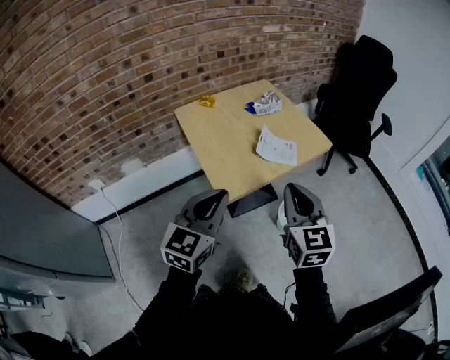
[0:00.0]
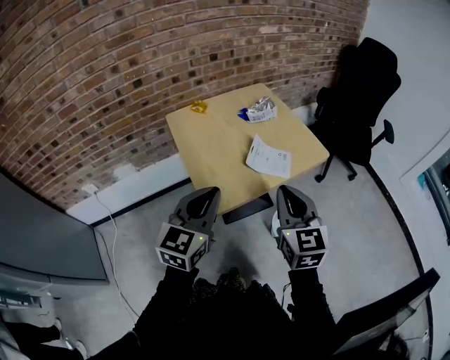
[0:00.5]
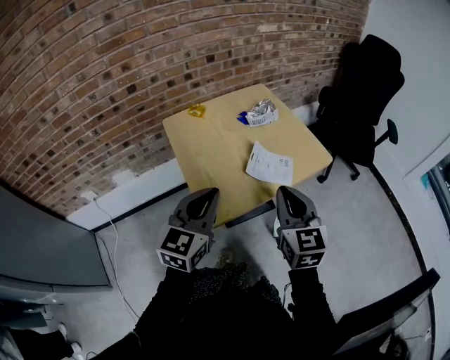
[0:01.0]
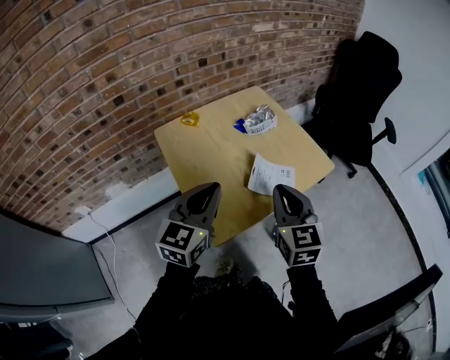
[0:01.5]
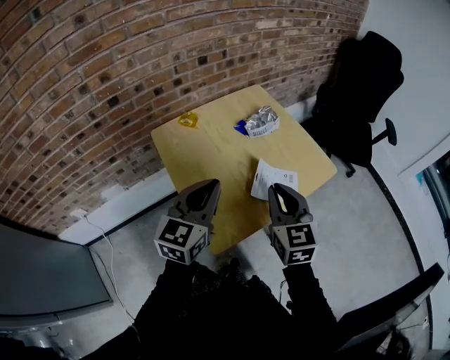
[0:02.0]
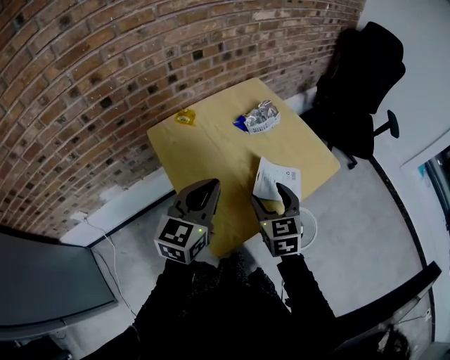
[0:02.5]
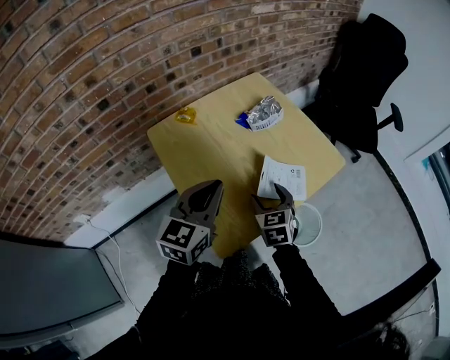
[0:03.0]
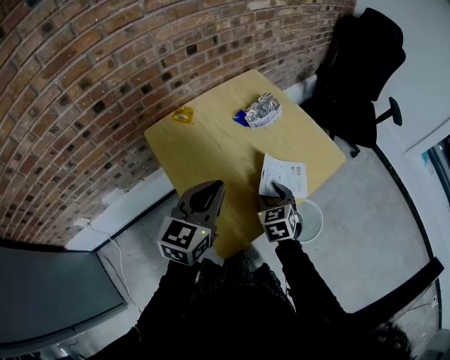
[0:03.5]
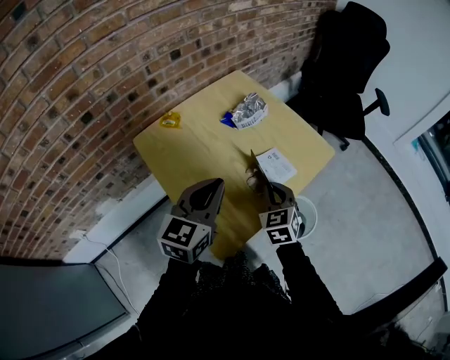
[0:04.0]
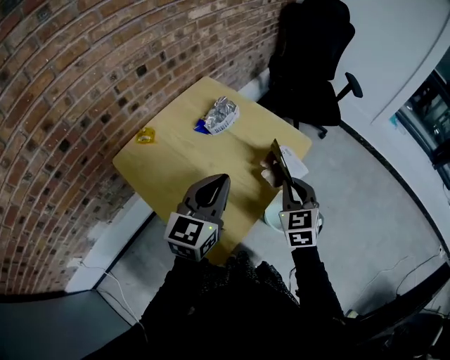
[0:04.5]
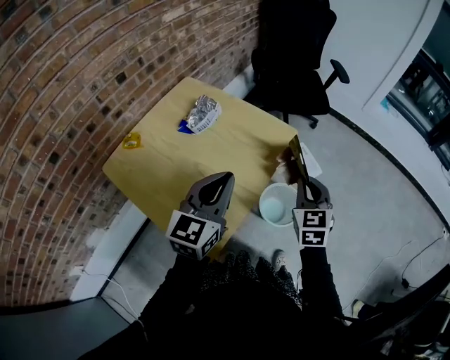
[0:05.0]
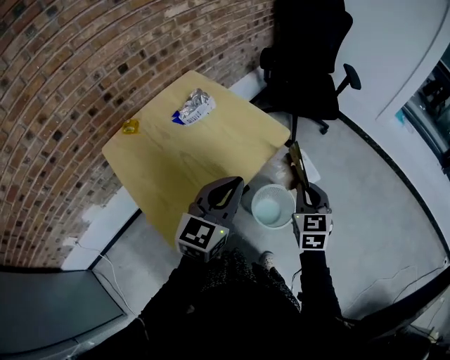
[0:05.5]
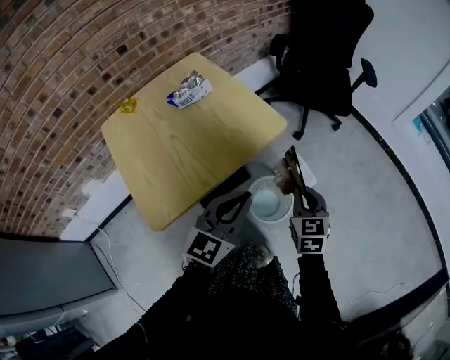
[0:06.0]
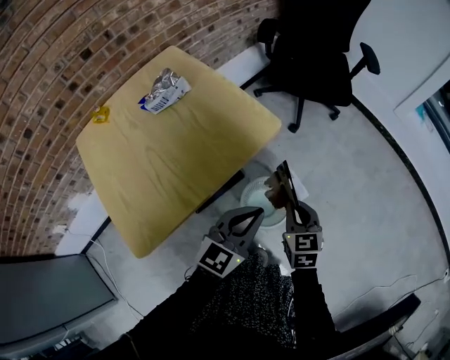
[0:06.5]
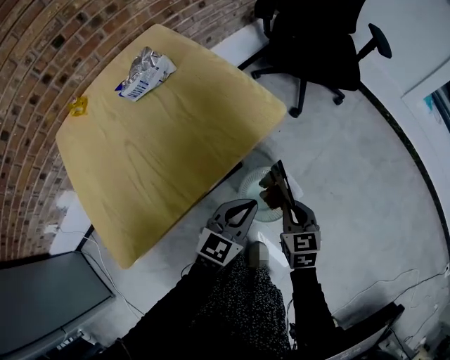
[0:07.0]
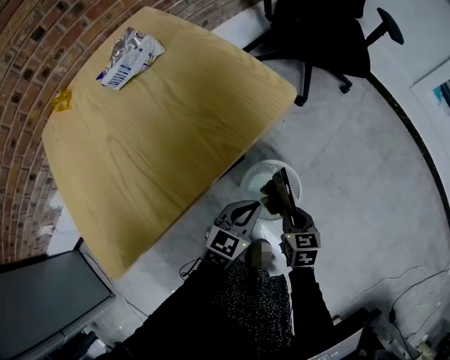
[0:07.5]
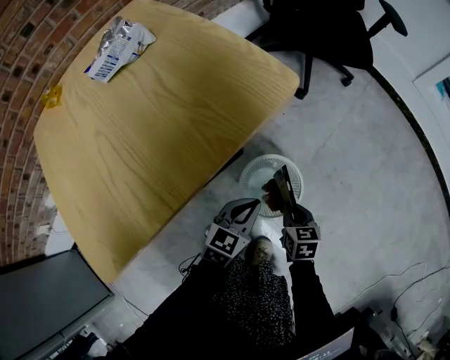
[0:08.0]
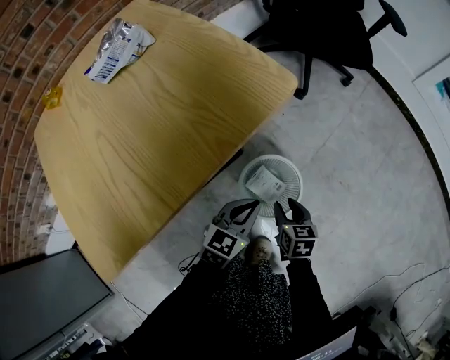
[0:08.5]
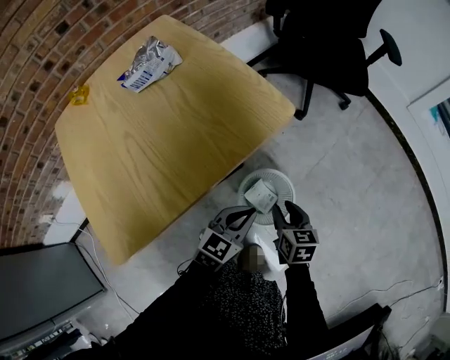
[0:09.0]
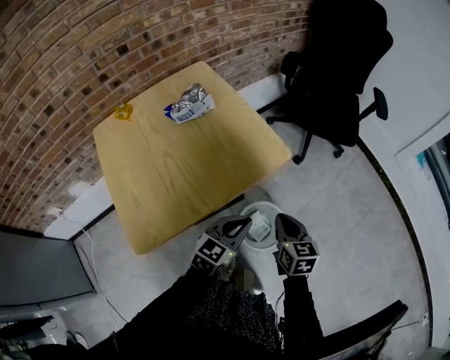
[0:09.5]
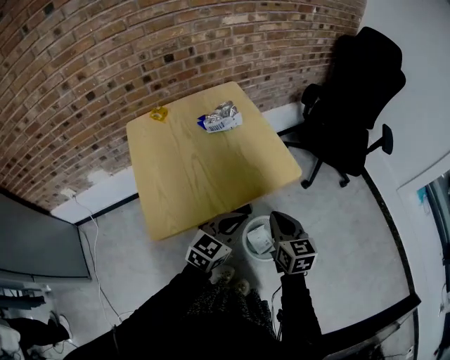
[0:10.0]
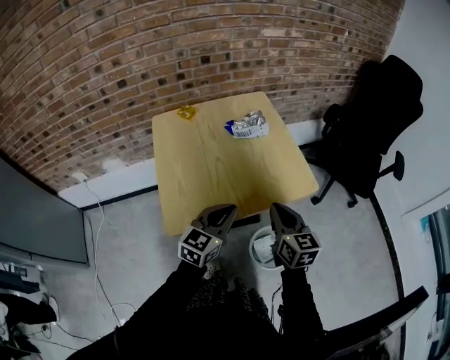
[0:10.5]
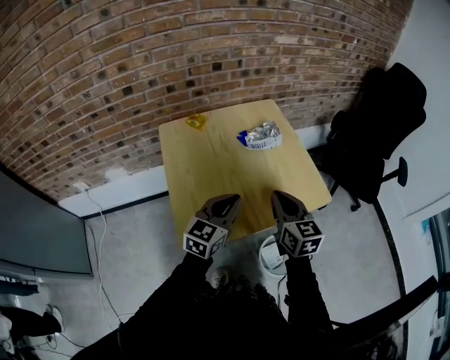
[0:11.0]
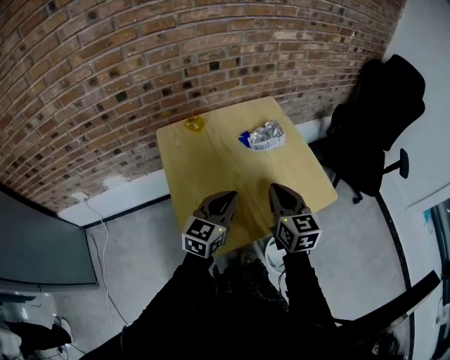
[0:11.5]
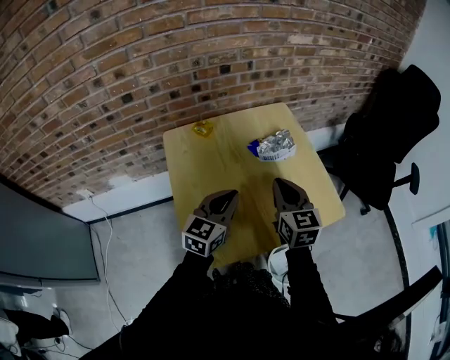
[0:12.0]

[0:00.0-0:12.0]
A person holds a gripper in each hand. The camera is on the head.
0:00.0 to 0:02.0: The grippers both shift forward by about 20 cm.
0:02.0 to 0:04.0: The left gripper moves approximately 5 cm; the right gripper is displaced downward by some 15 cm, rotates about 20 degrees, and opens, then closes once more.
0:04.0 to 0:06.0: The two grippers go roughly 30 cm to the right.
0:06.0 to 0:08.0: The two grippers go some 35 cm downward. The right gripper swivels some 30 degrees. Meanwhile the left gripper turns by about 20 degrees.
0:08.0 to 0:10.0: Both grippers move upward, approximately 35 cm. The right gripper turns by about 30 degrees, and opens and closes again. The left gripper turns by approximately 20 degrees.
0:10.0 to 0:12.0: The right gripper travels to the left, forward and upward by about 30 cm; the left gripper goes roughly 25 cm to the left and forward.

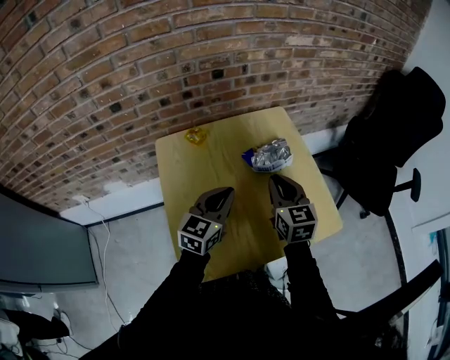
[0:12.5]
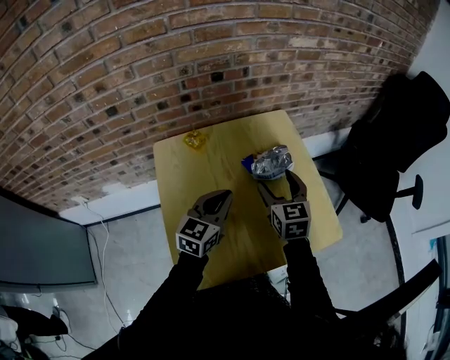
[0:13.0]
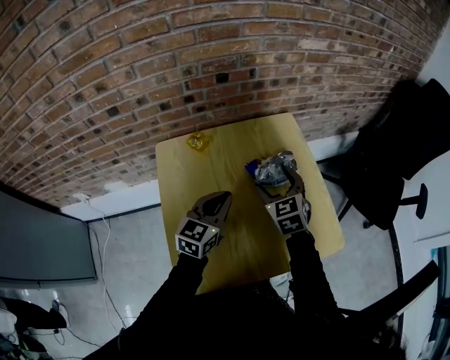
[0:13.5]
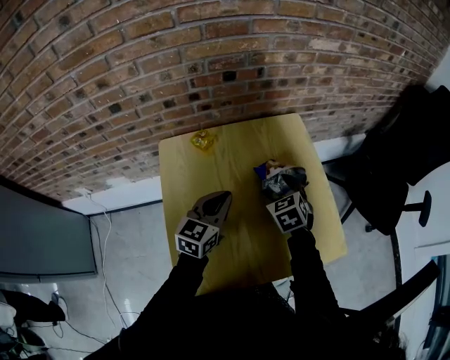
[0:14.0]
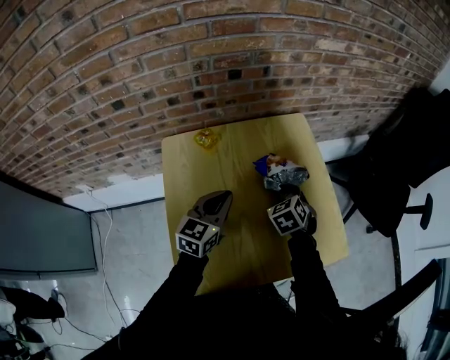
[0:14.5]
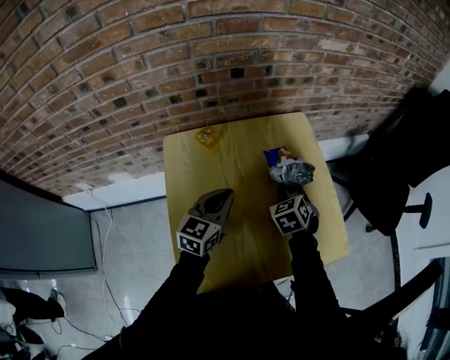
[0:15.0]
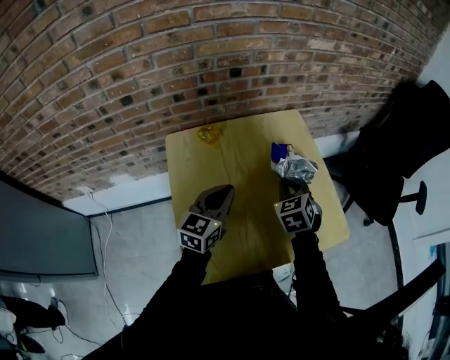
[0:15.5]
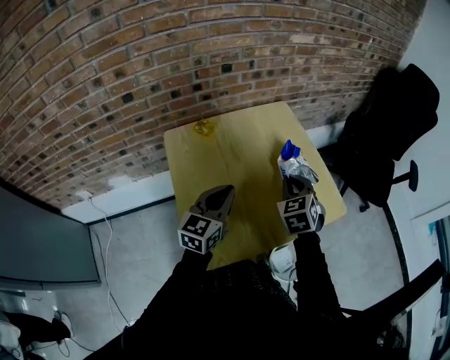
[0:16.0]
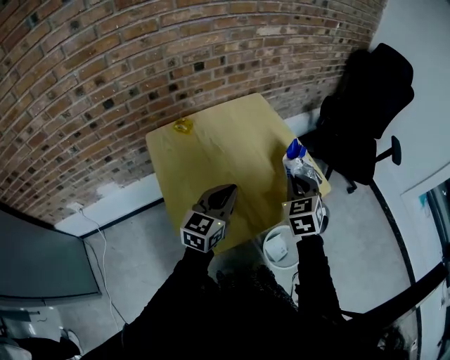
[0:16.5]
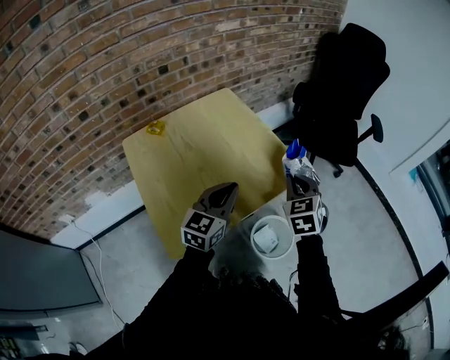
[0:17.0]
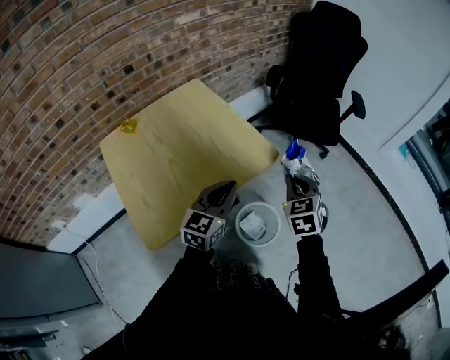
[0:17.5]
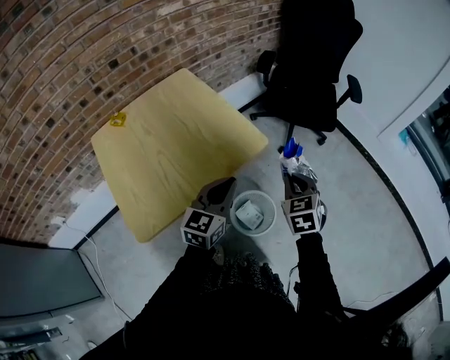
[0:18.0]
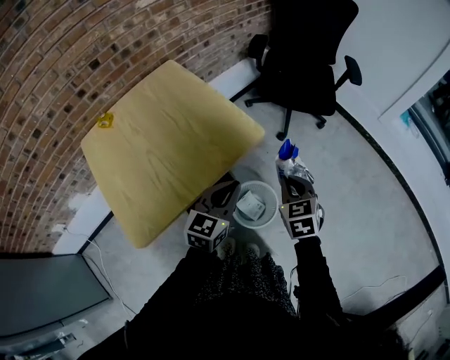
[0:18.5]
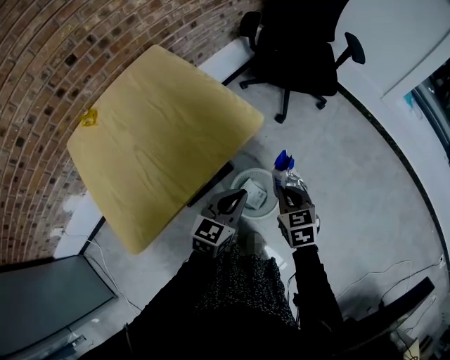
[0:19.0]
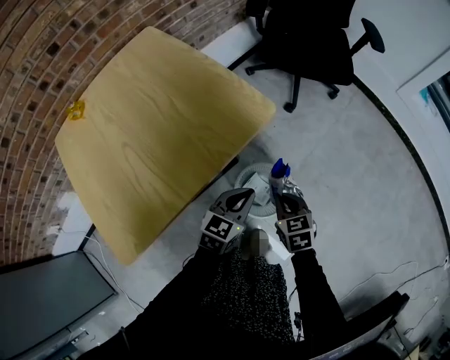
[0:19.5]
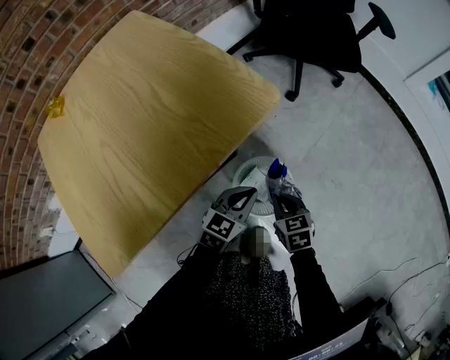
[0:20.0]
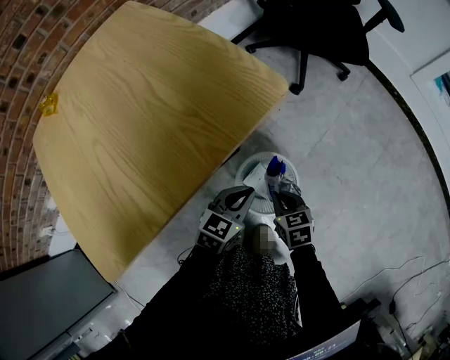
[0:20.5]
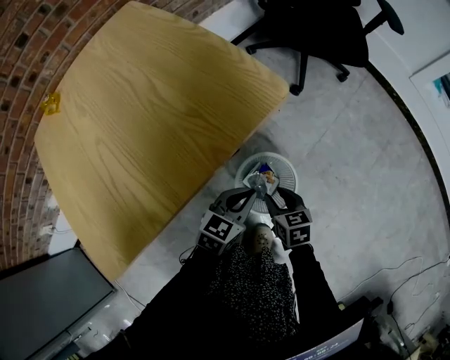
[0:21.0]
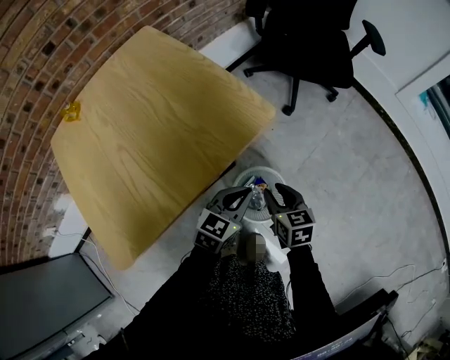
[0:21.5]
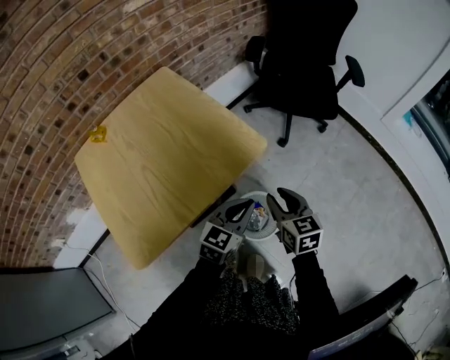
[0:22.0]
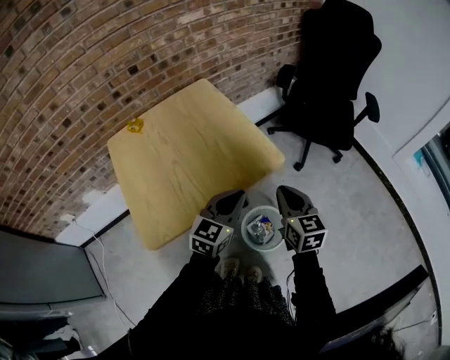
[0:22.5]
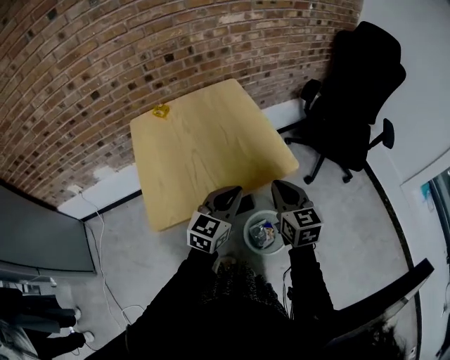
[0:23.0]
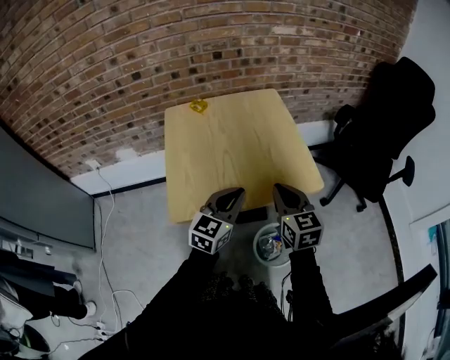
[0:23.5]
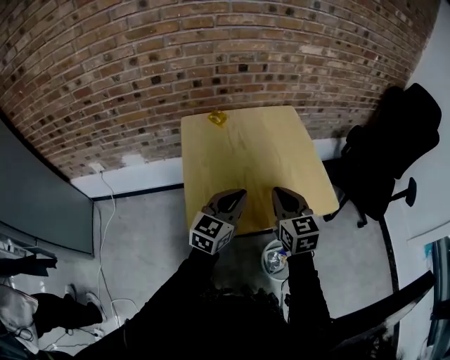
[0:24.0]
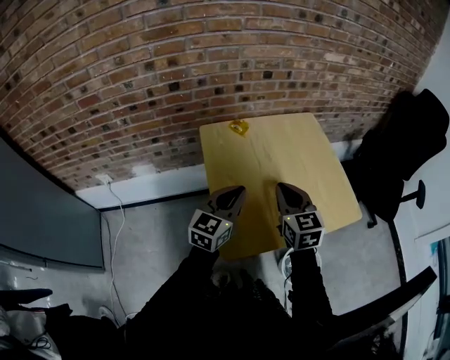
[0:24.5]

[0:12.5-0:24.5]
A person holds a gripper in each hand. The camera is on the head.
0:12.5 to 0:14.5: The left gripper moves forward, some 5 cm, while the right gripper heads downward and forward, covering about 15 cm, angles its fingers downward, by about 40 degrees, and opens, then closes once more.
0:14.5 to 0:16.5: The left gripper shifts about 15 cm backward, to the right and upward. Meanwhile the right gripper moves backward, upward and to the right, approximately 25 cm, and turns by about 30 degrees.
0:16.5 to 0:18.5: The grippers both shift to the right by approximately 25 cm. The right gripper rotates approximately 20 degrees.
0:18.5 to 0:20.5: Both grippers move downward, about 30 cm. The right gripper turns by roughly 30 degrees; the left gripper swivels roughly 20 degrees.
0:20.5 to 0:22.5: Both grippers move upward, approximately 35 cm. The right gripper points its fingers about 30 degrees further upward. The left gripper turns by about 30 degrees.
0:22.5 to 0:24.5: The two grippers go roughly 35 cm to the left. The right gripper swivels about 20 degrees. The left gripper rotates approximately 20 degrees.

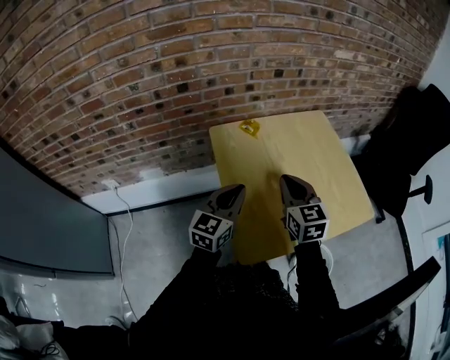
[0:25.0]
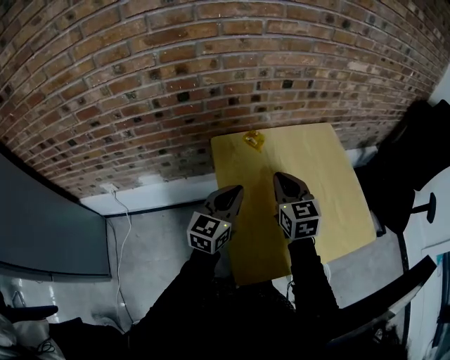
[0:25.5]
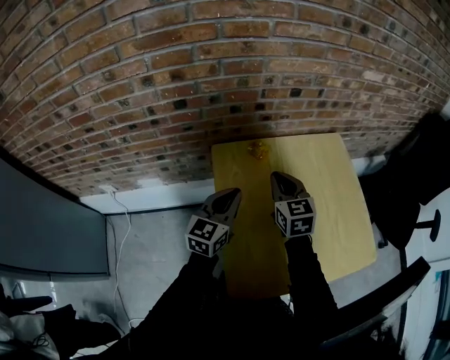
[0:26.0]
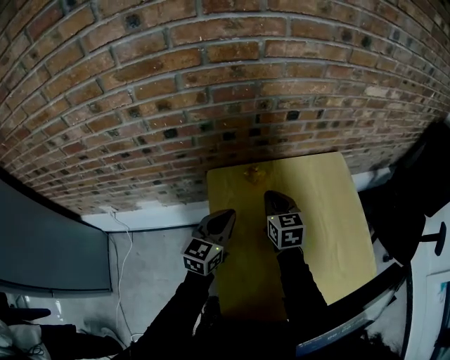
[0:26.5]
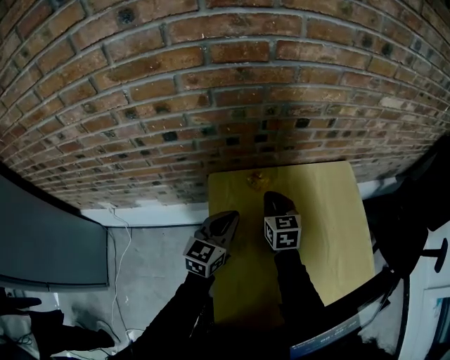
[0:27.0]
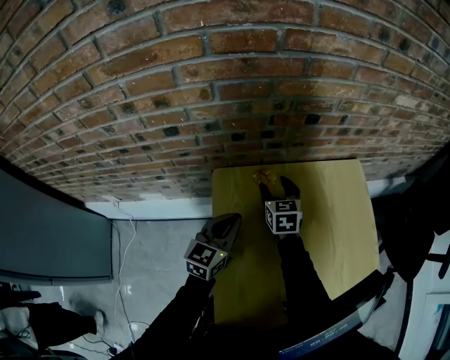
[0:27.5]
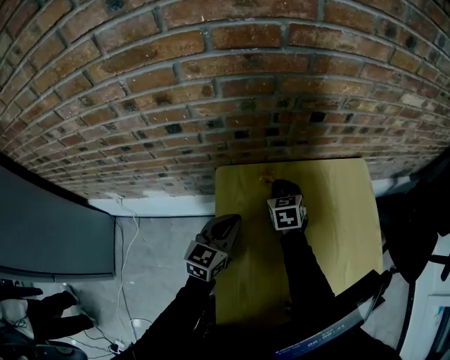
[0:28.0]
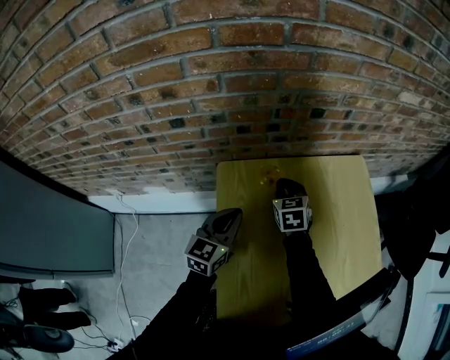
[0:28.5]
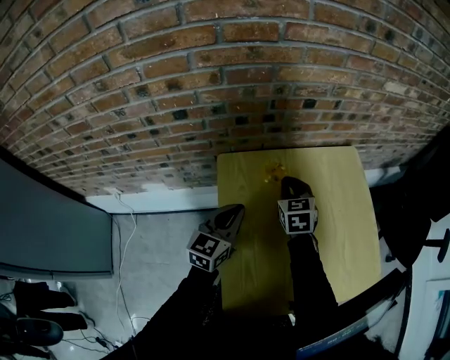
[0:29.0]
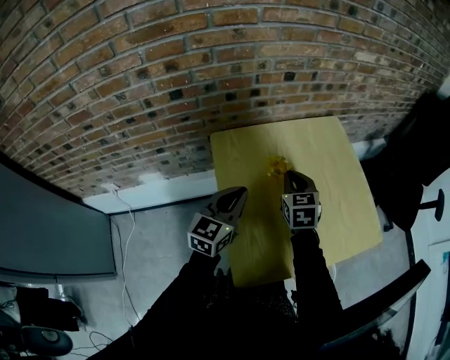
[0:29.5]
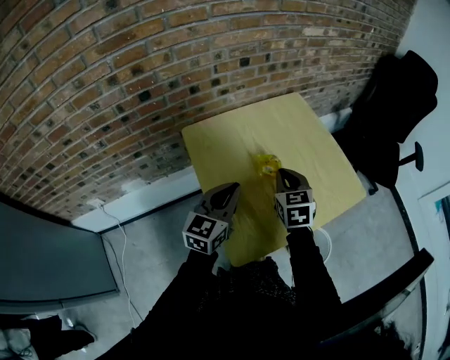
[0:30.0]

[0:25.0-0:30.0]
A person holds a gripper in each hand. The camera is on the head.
0:25.0 to 0:27.5: The right gripper heads forward and downward, covering approximately 35 cm, and opens up. Meanwhile the left gripper heads forward and downward, covering approximately 20 cm.
0:27.5 to 0:30.0: The right gripper moves backward and to the right, about 30 cm, turns by roughly 20 degrees, and closes its fingers, while the left gripper heads backward, to the right and upward, covering approximately 20 cm.
